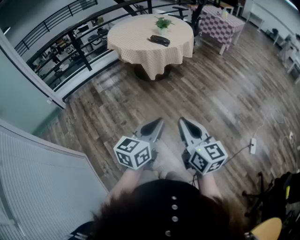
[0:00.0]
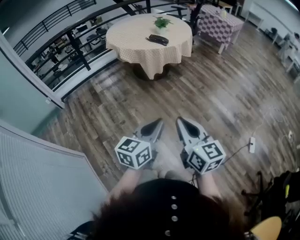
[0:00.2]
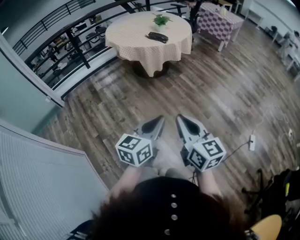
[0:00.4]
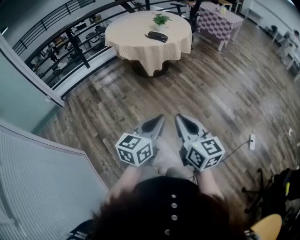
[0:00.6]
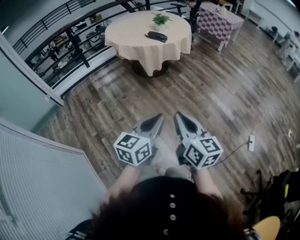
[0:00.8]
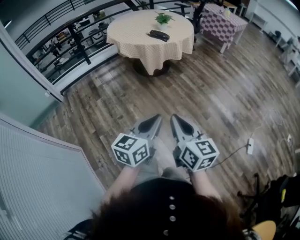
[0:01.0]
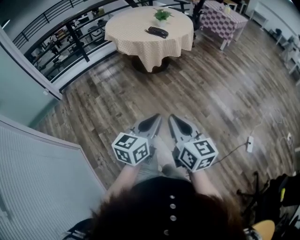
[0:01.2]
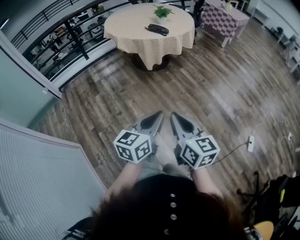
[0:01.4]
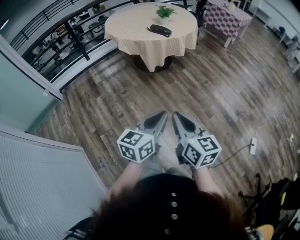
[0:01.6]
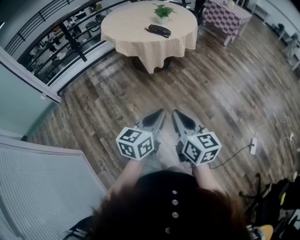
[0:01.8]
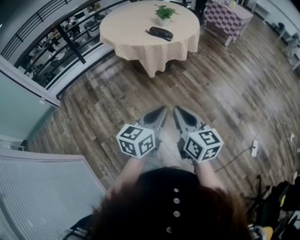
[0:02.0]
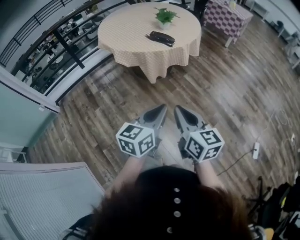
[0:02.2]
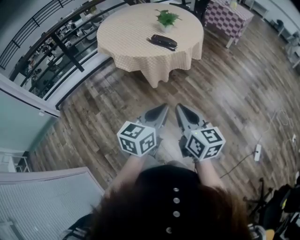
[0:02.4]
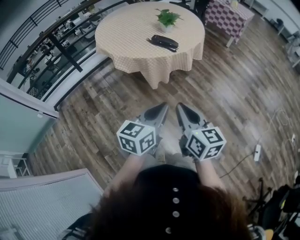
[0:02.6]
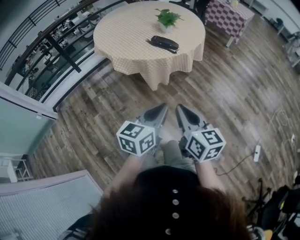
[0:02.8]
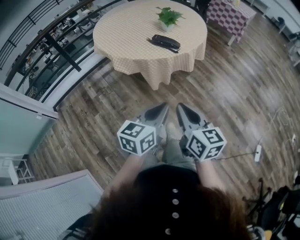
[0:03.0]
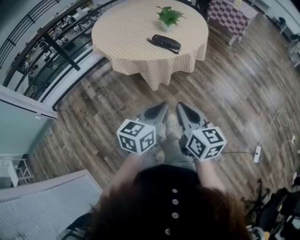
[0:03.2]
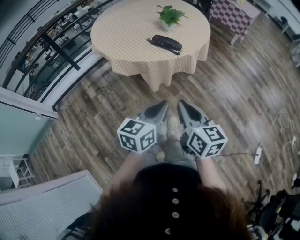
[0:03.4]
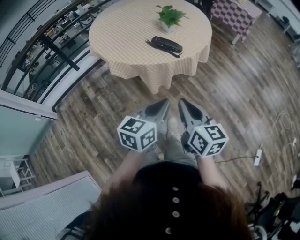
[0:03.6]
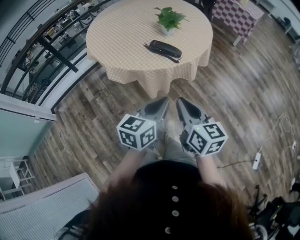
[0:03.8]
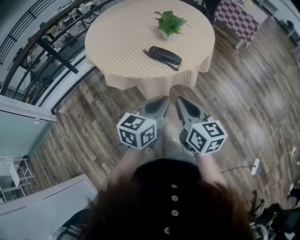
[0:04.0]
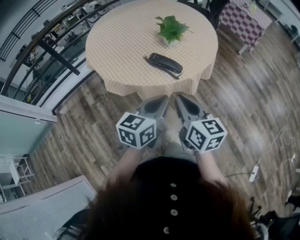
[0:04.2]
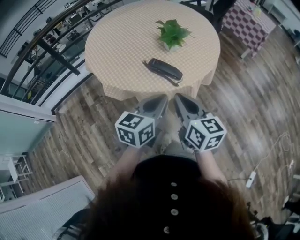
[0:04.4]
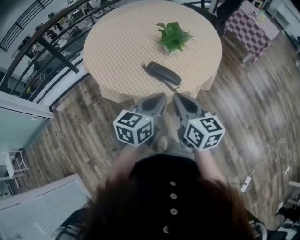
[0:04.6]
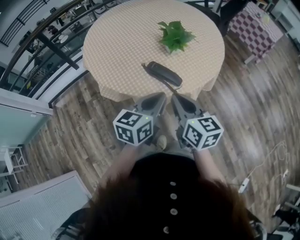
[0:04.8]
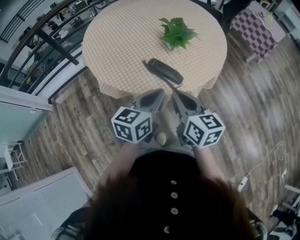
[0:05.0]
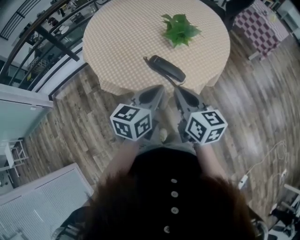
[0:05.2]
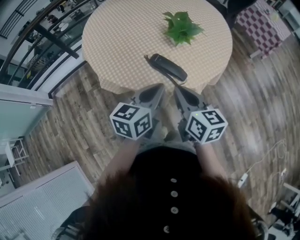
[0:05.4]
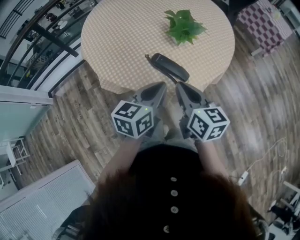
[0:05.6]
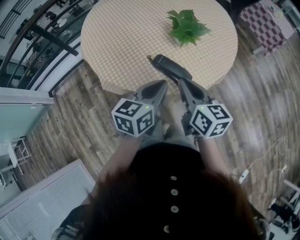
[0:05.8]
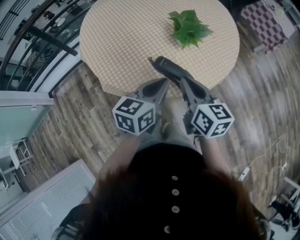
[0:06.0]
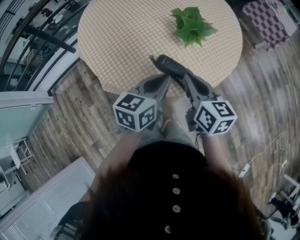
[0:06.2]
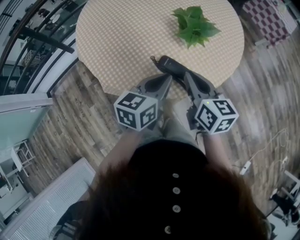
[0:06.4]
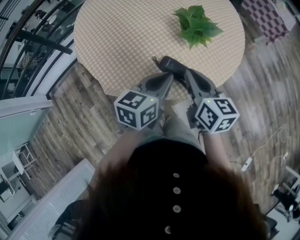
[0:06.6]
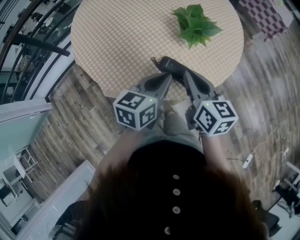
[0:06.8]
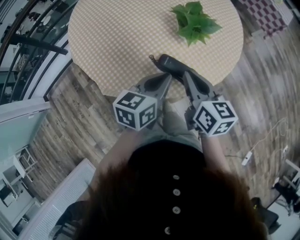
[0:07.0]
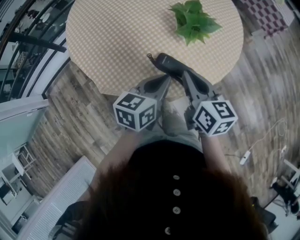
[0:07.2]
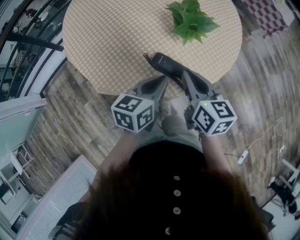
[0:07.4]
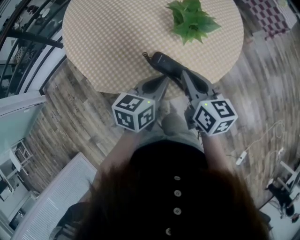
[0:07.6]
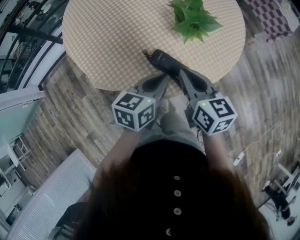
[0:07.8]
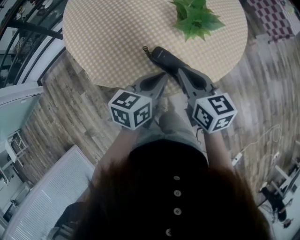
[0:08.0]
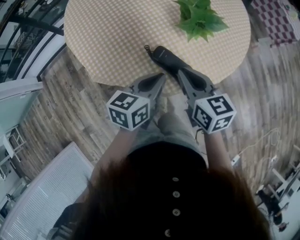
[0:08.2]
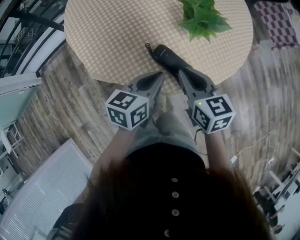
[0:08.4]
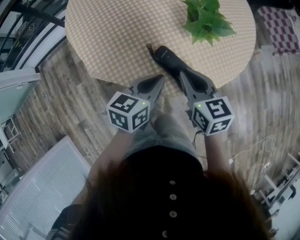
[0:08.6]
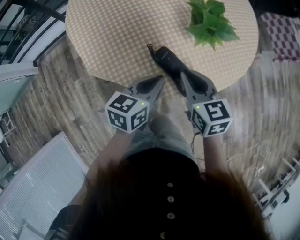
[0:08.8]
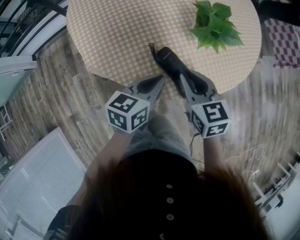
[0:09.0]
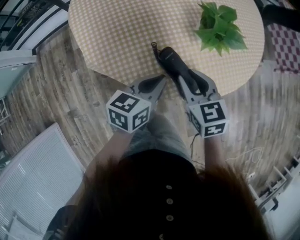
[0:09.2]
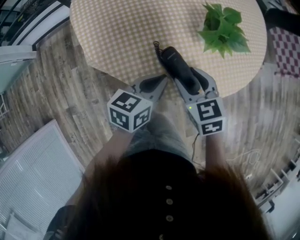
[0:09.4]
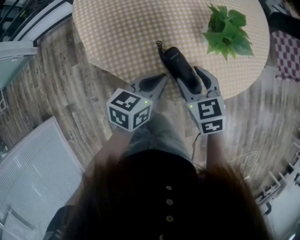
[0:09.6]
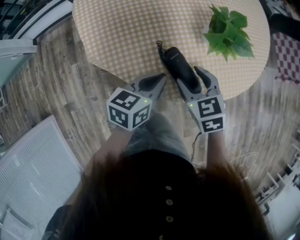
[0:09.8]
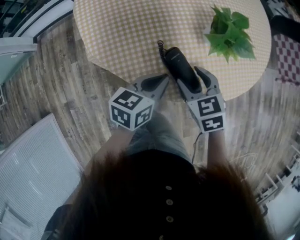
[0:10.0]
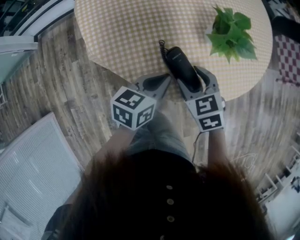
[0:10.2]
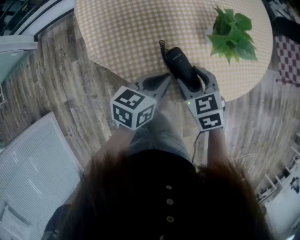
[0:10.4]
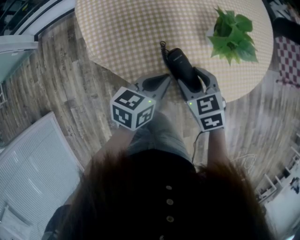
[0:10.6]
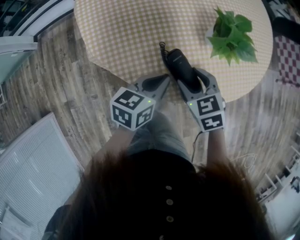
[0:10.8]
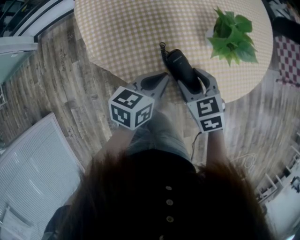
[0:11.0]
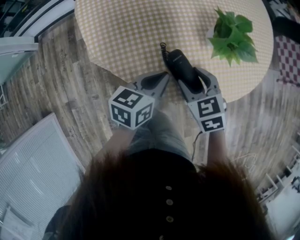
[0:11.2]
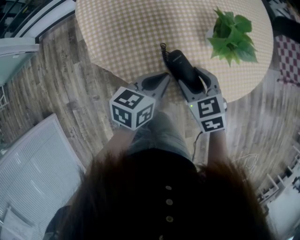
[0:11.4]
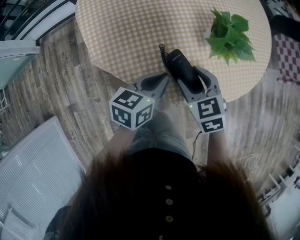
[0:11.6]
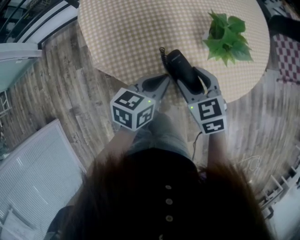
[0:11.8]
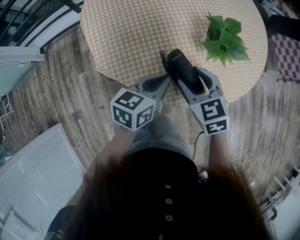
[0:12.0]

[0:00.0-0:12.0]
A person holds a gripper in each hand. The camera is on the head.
0:00.0 to 0:01.6: The right gripper shifts roughly 10 cm forward and downward, while the left gripper travels forward by some 5 cm.
0:01.6 to 0:03.0: Both grippers travel together forward, approximately 30 cm.
0:03.0 to 0:04.4: Both grippers travel together forward, some 30 cm.
0:04.4 to 0:06.0: The grippers both shift forward by approximately 15 cm.
0:06.0 to 0:07.6: The left gripper moves downward, roughly 5 cm, while the right gripper moves roughly 5 cm.
0:07.6 to 0:09.0: The right gripper goes about 5 cm downward, and turns by about 30 degrees.
0:09.0 to 0:10.4: The right gripper shifts approximately 5 cm downward, changes its angle by about 30 degrees, and opens its fingers.
0:10.4 to 0:12.0: The right gripper is displaced upward by roughly 5 cm.

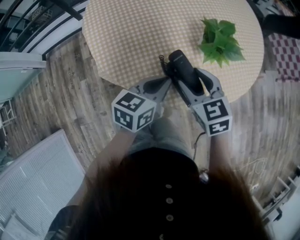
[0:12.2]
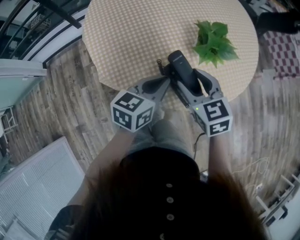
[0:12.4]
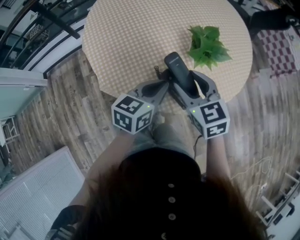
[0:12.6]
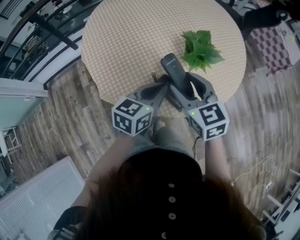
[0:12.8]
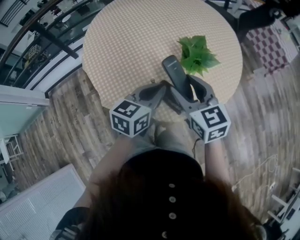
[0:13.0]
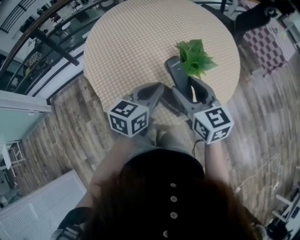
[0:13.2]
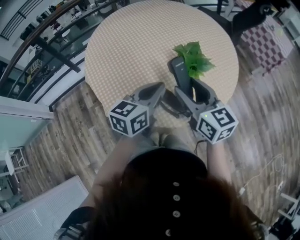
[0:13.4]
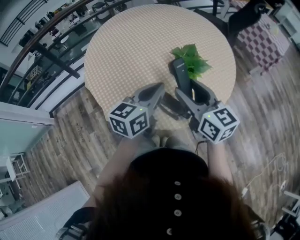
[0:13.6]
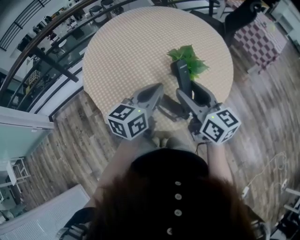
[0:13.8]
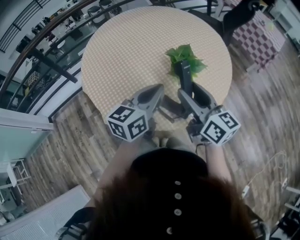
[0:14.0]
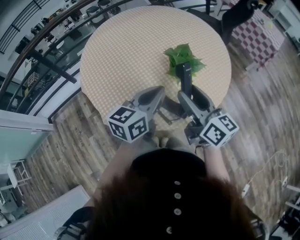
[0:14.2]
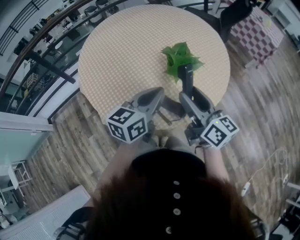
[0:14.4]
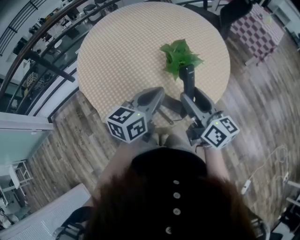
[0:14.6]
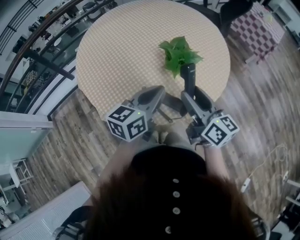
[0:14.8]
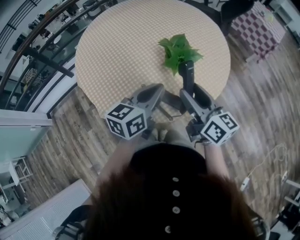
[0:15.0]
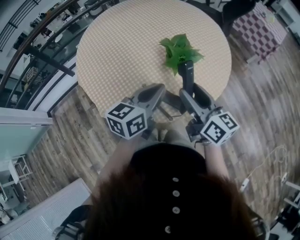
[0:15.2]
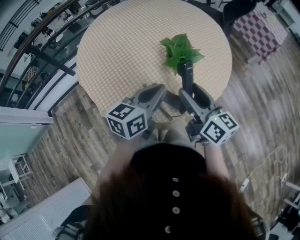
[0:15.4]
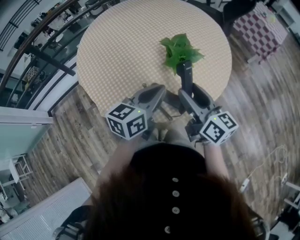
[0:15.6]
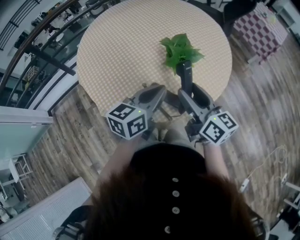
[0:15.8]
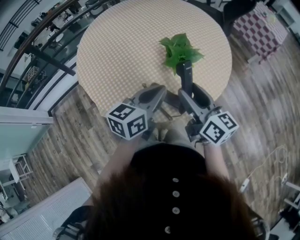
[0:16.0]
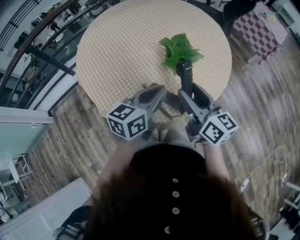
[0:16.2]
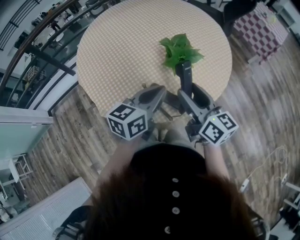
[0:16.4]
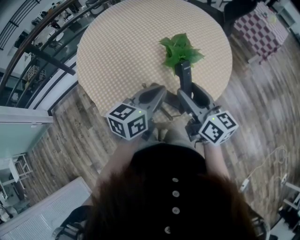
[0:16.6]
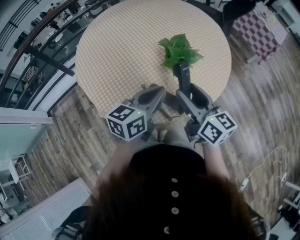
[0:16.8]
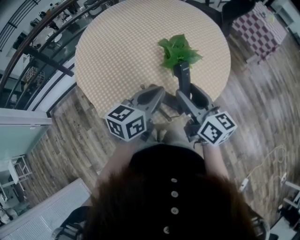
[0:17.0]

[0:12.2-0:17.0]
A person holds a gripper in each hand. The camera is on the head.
0:12.2 to 0:13.8: Both grippers move upward, approximately 15 cm. The right gripper tips its fingers upward by about 30 degrees.
0:13.8 to 0:15.4: The right gripper moves about 5 cm.
0:15.4 to 0:17.0: Neither gripper changes place.

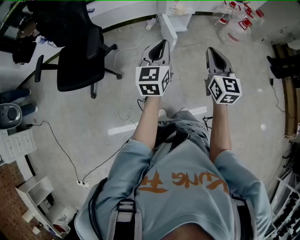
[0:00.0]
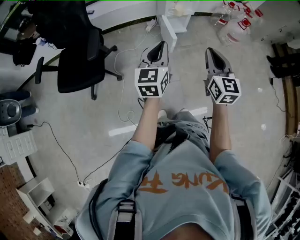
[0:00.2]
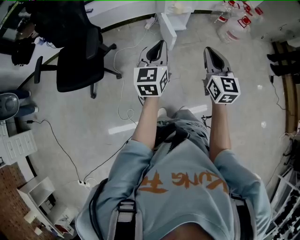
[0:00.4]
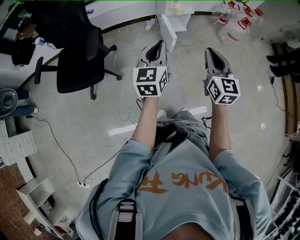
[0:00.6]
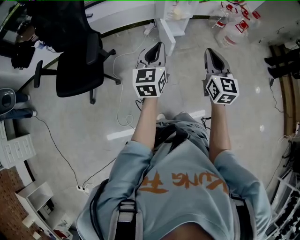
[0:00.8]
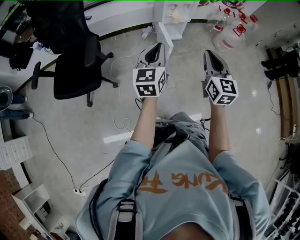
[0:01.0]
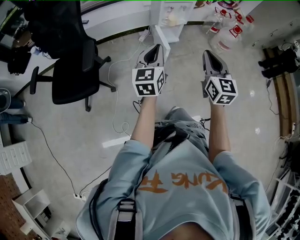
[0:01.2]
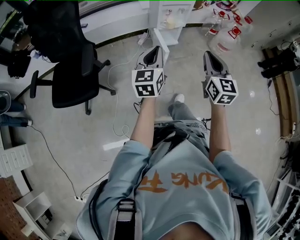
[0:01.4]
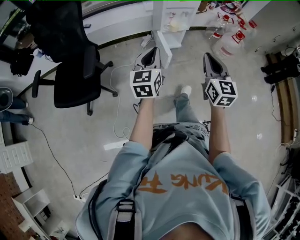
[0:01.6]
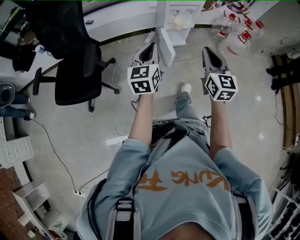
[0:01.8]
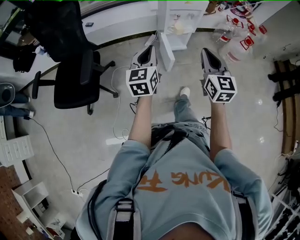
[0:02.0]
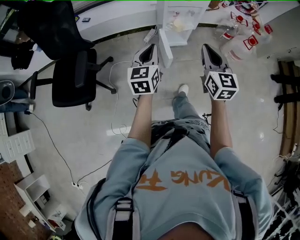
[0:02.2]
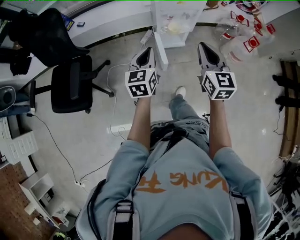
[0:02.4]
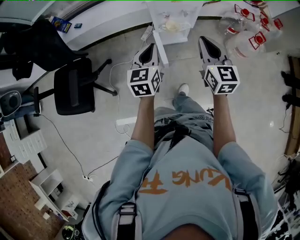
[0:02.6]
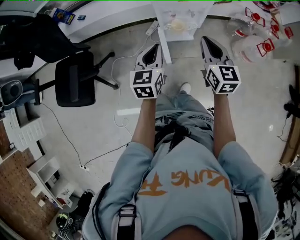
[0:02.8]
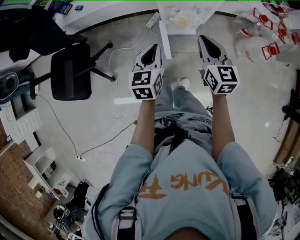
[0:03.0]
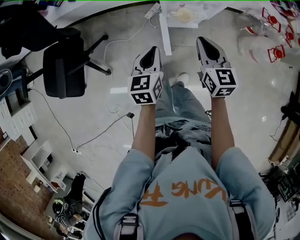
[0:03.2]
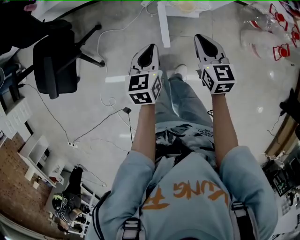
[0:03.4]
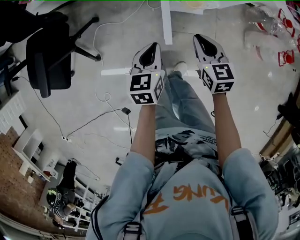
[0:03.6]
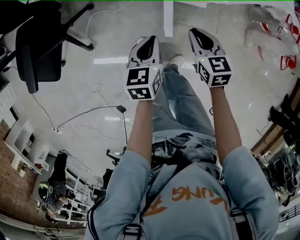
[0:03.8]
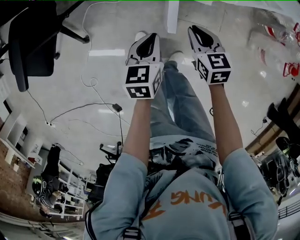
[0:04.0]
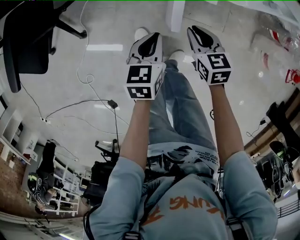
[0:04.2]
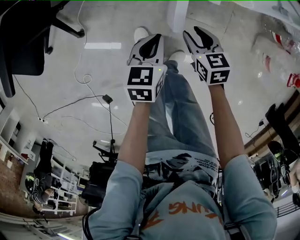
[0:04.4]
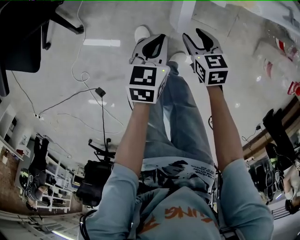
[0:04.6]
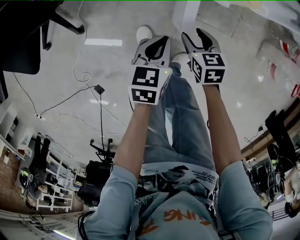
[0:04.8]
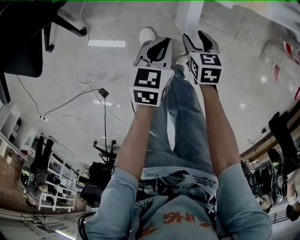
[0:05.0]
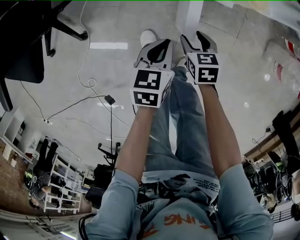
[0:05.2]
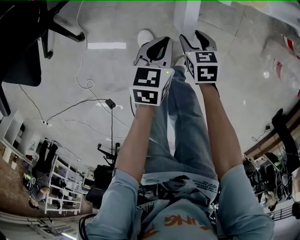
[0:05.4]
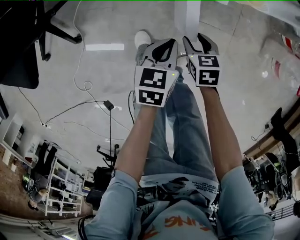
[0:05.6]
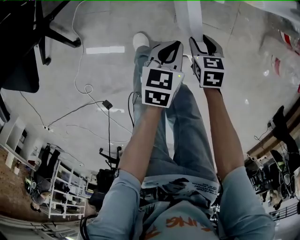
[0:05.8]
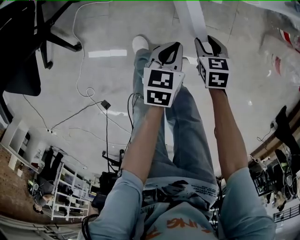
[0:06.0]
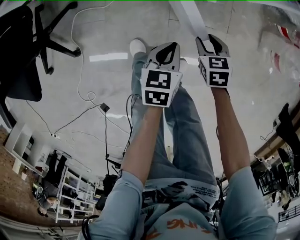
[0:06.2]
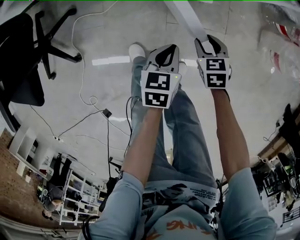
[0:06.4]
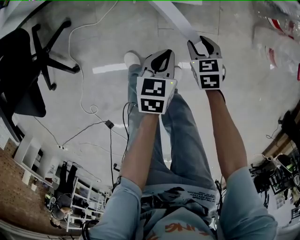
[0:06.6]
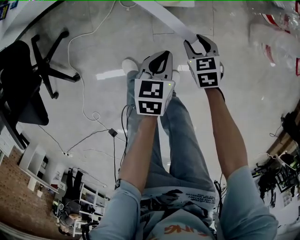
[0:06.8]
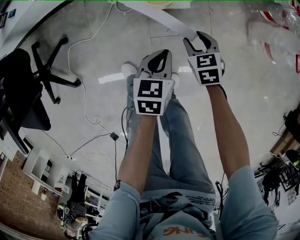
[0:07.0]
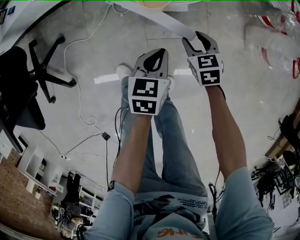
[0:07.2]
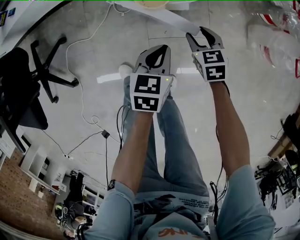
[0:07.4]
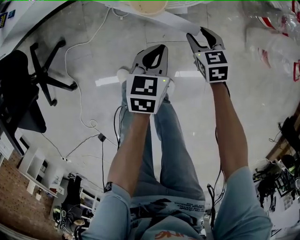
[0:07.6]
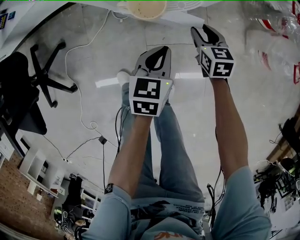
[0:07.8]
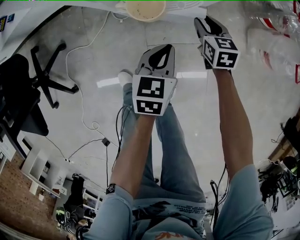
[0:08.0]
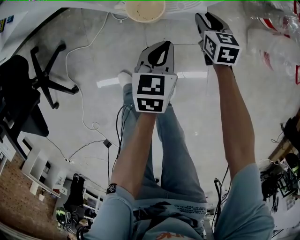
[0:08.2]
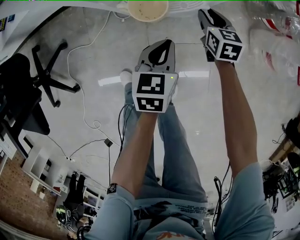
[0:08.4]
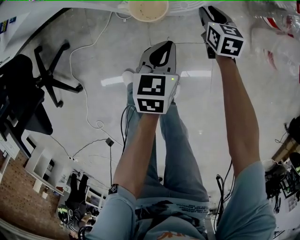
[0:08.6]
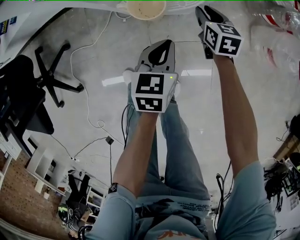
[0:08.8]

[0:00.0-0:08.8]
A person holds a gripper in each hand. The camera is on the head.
0:00.0 to 0:01.4: The right gripper changes place by approximately 5 cm; the left gripper moves forward, approximately 5 cm.
0:01.4 to 0:03.0: The right gripper heads forward, covering roughly 40 cm, and swivels some 30 degrees; the left gripper travels forward and downward by roughly 35 cm, and turns by some 30 degrees.
0:03.0 to 0:04.4: Both grippers move downward, roughly 35 cm. The right gripper turns by some 40 degrees, and opens. Meanwhile the left gripper changes its angle by about 20 degrees.
0:04.4 to 0:05.8: The right gripper moves downward, about 10 cm. Meanwhile the left gripper is displaced downward and to the right by about 10 cm.
0:05.8 to 0:07.4: Both grippers travel together to the right and forward, approximately 15 cm.
0:07.4 to 0:08.8: The right gripper travels forward by approximately 10 cm.
